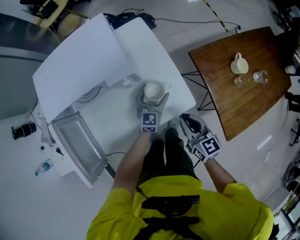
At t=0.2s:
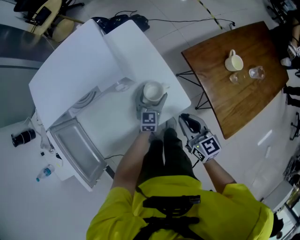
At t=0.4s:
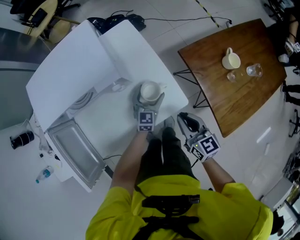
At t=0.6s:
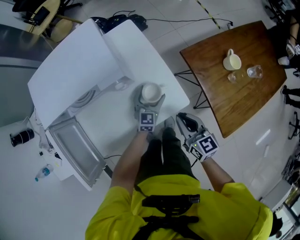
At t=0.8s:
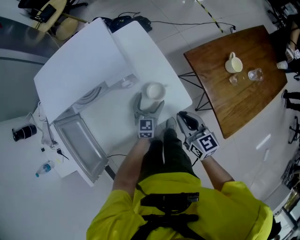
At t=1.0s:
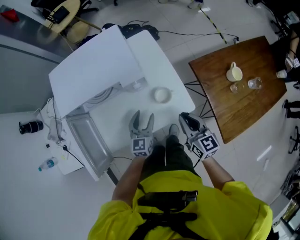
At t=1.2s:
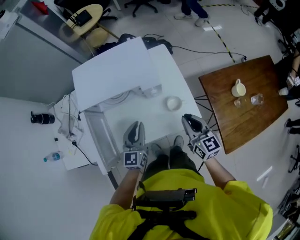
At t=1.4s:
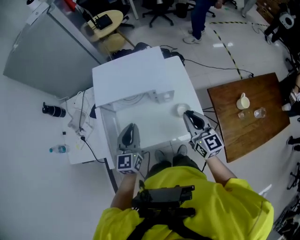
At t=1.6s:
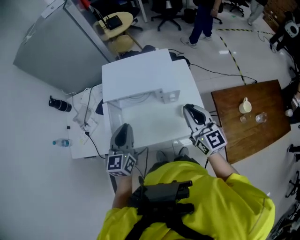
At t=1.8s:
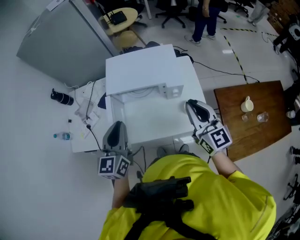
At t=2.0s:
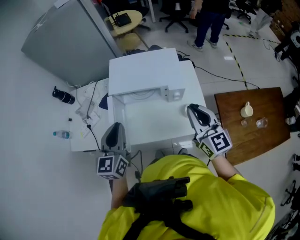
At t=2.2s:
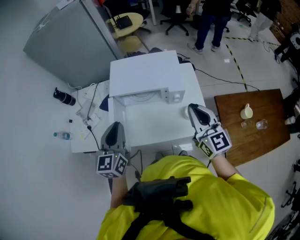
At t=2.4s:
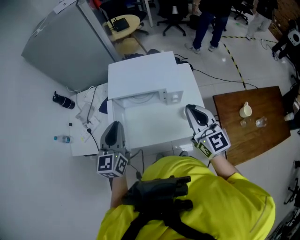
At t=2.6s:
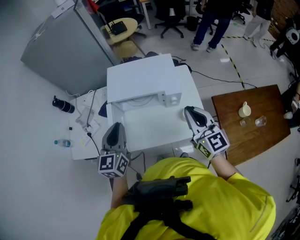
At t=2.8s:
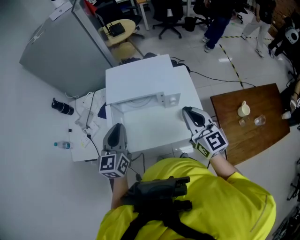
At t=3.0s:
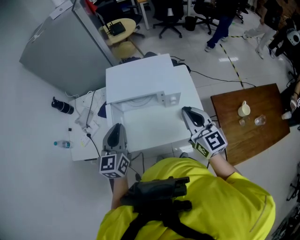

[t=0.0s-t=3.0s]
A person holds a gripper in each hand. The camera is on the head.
t=0.0s to t=1.6s: The left gripper moves upward, to the left and backward, about 50 cm, changes its angle by some 30 degrees, and closes up; the right gripper heads upward and to the left, covering approximately 30 cm, and rotates roughly 30 degrees.
t=1.6s to t=3.0s: The left gripper changes place by about 5 cm.

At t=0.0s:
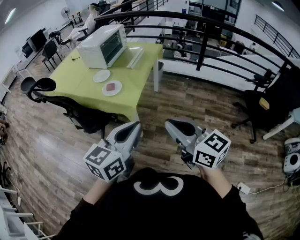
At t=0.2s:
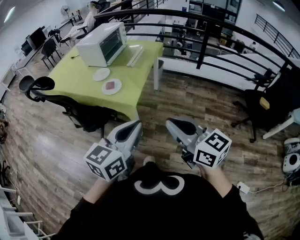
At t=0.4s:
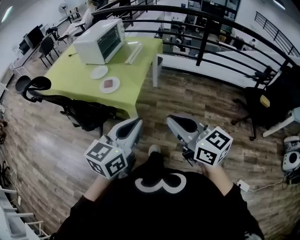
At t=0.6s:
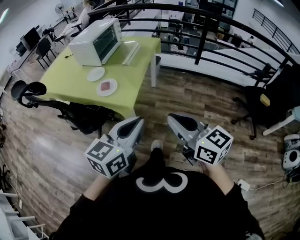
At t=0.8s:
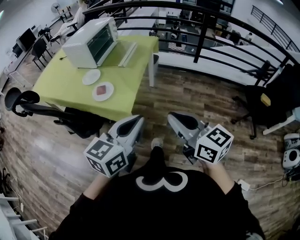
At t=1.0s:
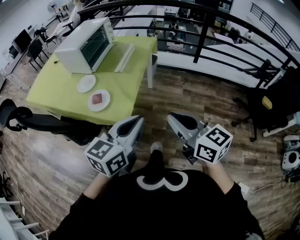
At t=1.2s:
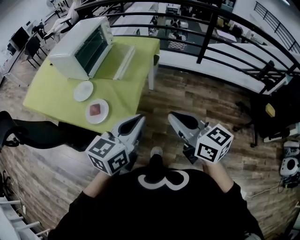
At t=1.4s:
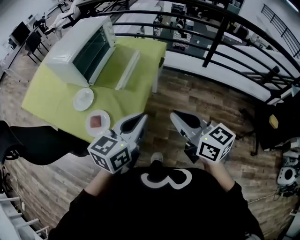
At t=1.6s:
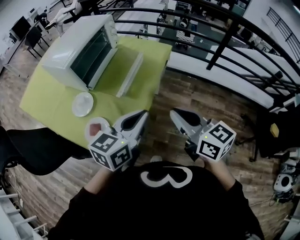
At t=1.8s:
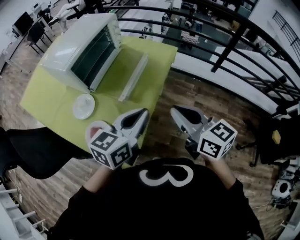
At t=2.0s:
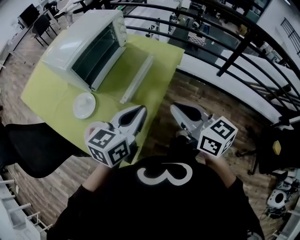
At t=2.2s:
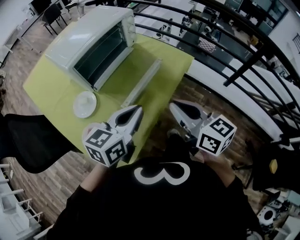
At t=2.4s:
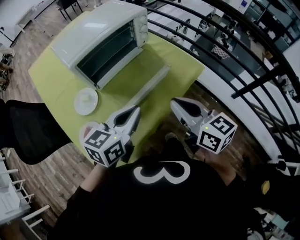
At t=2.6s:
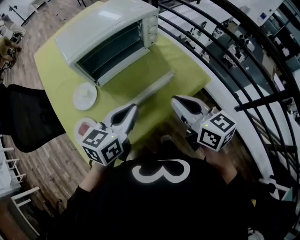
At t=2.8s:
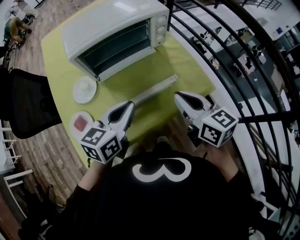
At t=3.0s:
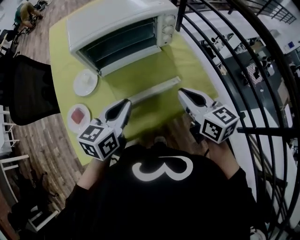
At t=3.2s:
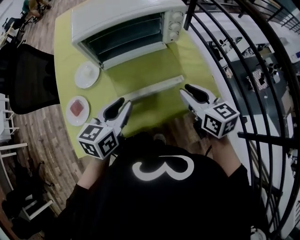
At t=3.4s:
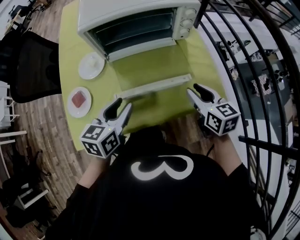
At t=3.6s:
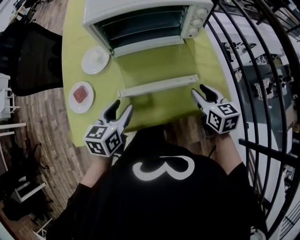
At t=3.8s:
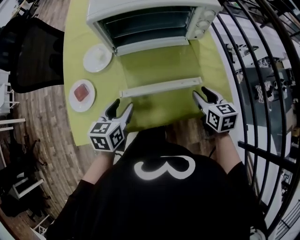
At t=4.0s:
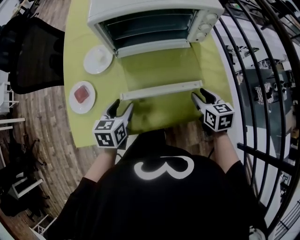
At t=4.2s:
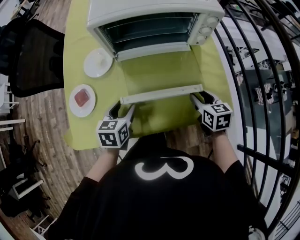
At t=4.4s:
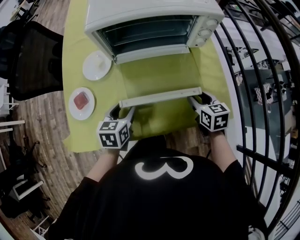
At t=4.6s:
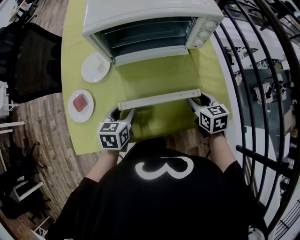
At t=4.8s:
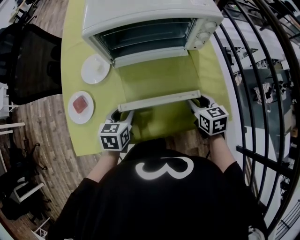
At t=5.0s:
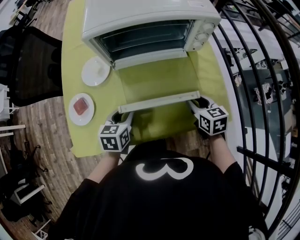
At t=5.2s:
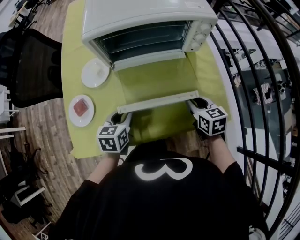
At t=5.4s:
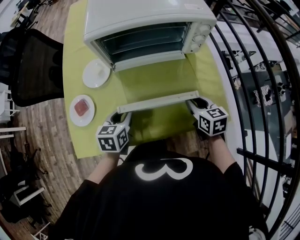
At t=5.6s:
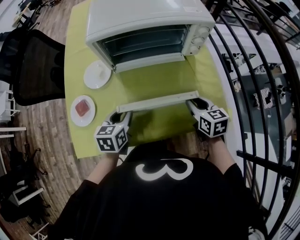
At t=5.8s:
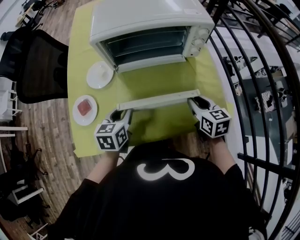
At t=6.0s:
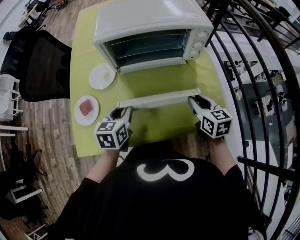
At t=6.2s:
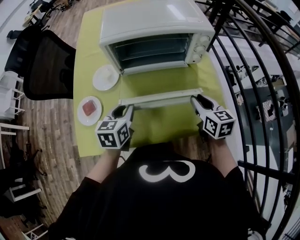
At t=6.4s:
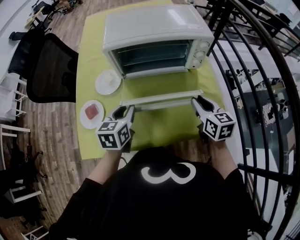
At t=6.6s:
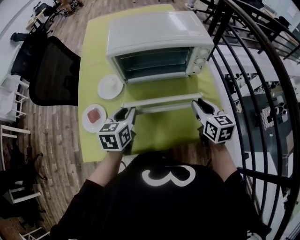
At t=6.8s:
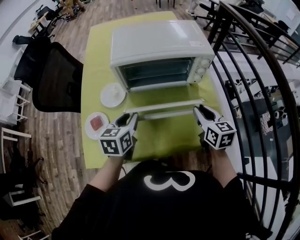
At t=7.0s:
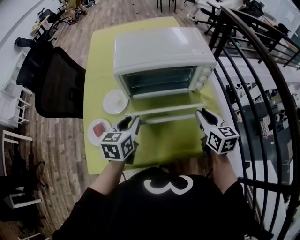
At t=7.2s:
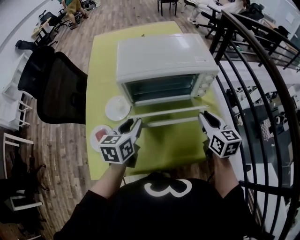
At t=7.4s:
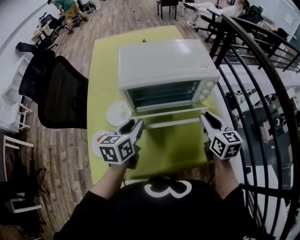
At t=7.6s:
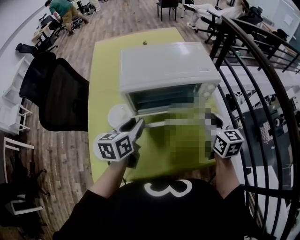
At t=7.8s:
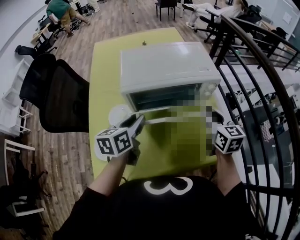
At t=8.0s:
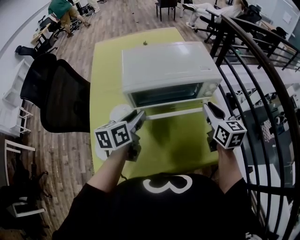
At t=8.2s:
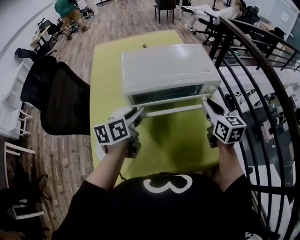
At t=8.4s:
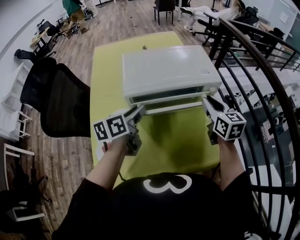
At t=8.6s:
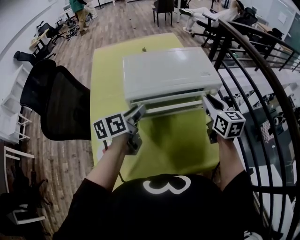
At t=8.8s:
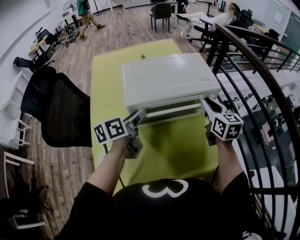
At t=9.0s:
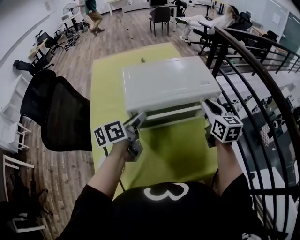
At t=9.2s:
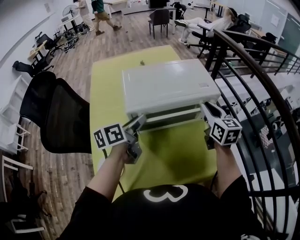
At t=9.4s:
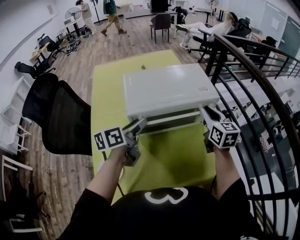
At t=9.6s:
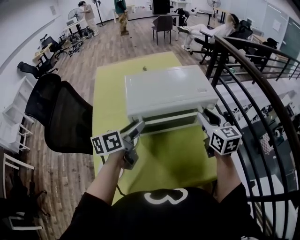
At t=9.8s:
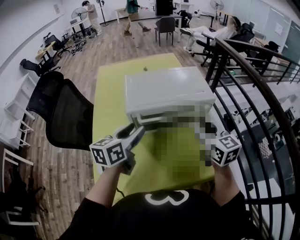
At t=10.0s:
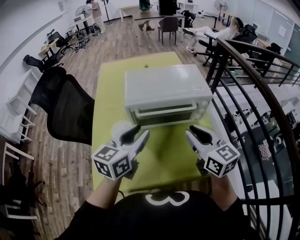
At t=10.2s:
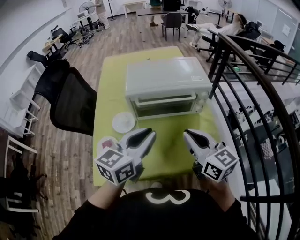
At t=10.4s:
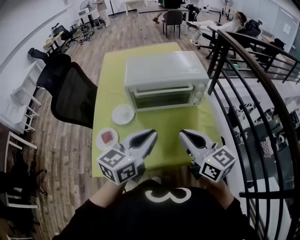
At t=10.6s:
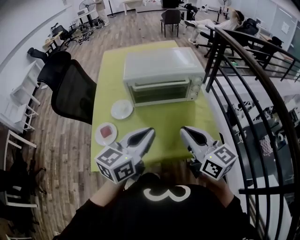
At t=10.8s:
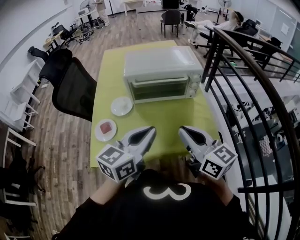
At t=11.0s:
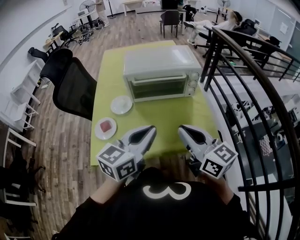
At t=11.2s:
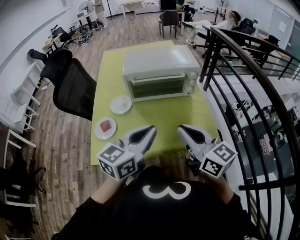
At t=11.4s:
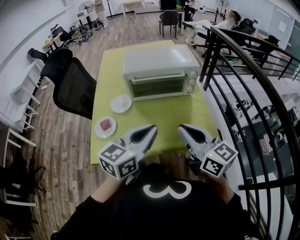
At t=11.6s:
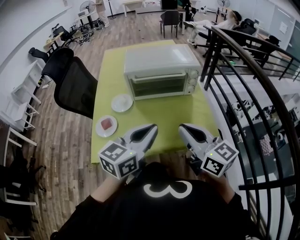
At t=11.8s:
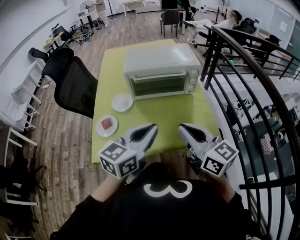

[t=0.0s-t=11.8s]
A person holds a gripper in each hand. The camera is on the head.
t=0.0s to t=1.4s: Both grippers are carried forward, roughly 40 cm.
t=1.4s to t=3.0s: The left gripper changes place by roughly 35 cm, and swivels some 50 degrees. Meanwhile the right gripper moves some 50 cm, and changes its angle by some 40 degrees.
t=3.0s to t=4.4s: The right gripper shifts about 20 cm downward and forward, rotates approximately 30 degrees, and opens up; the left gripper heads downward and to the left, covering roughly 20 cm, turns by roughly 30 degrees, and opens.
t=4.4s to t=6.0s: Both grippers move upward, approximately 5 cm. The right gripper closes up. The left gripper closes up.
t=6.0s to t=7.4s: The grippers both shift upward and forward by roughly 15 cm.
t=7.4s to t=8.8s: Both grippers travel together forward, about 10 cm. The left gripper swivels about 30 degrees.
t=8.8s to t=10.4s: The right gripper heads backward, covering approximately 25 cm, and rotates roughly 30 degrees. Meanwhile the left gripper heads backward and to the right, covering approximately 25 cm, rotates about 30 degrees, and closes up.
t=10.4s to t=11.8s: The two grippers go about 10 cm backward.

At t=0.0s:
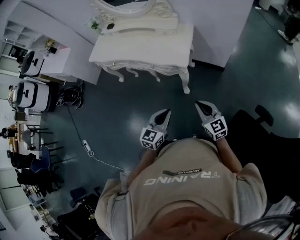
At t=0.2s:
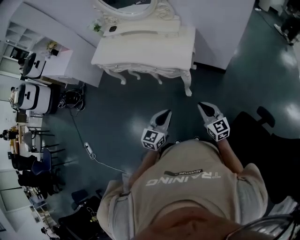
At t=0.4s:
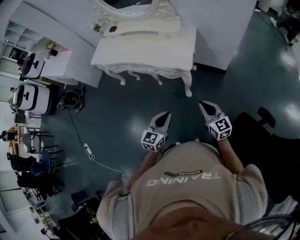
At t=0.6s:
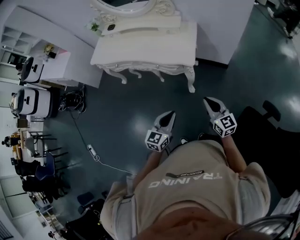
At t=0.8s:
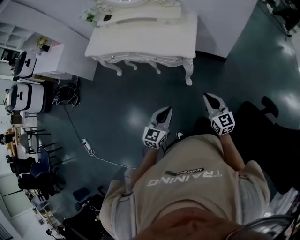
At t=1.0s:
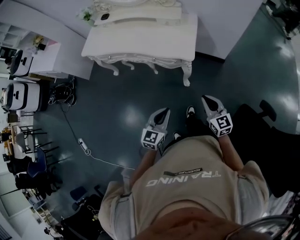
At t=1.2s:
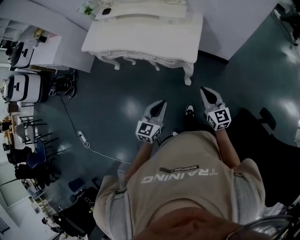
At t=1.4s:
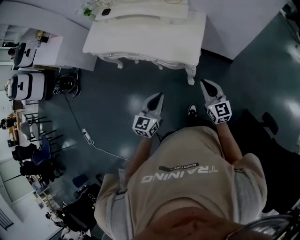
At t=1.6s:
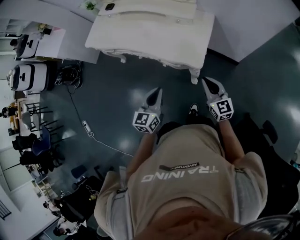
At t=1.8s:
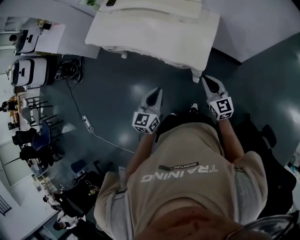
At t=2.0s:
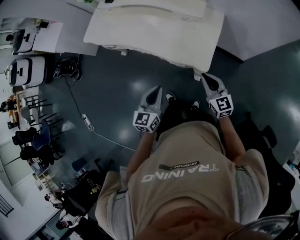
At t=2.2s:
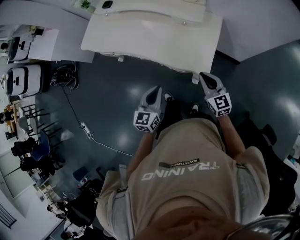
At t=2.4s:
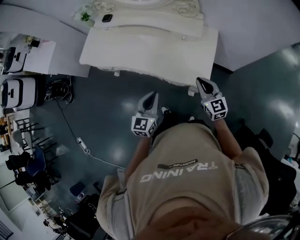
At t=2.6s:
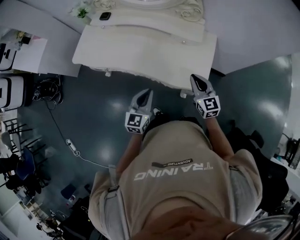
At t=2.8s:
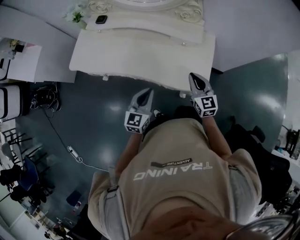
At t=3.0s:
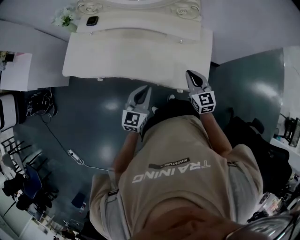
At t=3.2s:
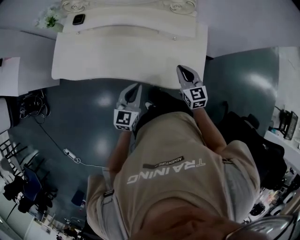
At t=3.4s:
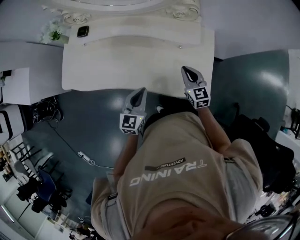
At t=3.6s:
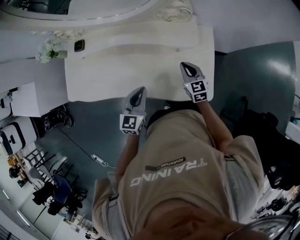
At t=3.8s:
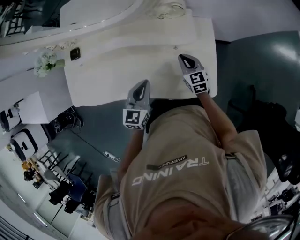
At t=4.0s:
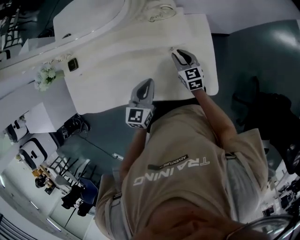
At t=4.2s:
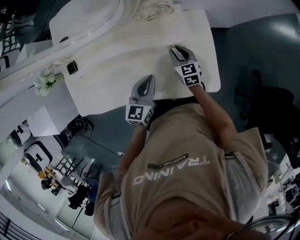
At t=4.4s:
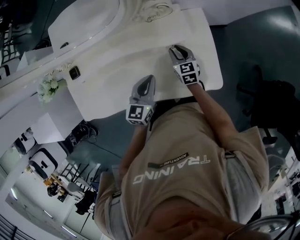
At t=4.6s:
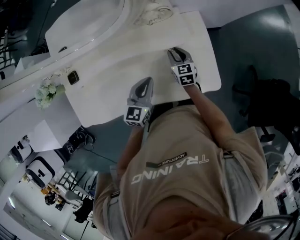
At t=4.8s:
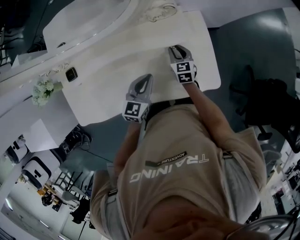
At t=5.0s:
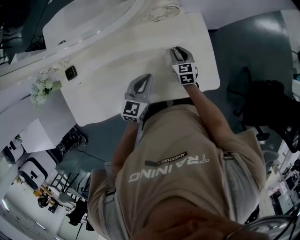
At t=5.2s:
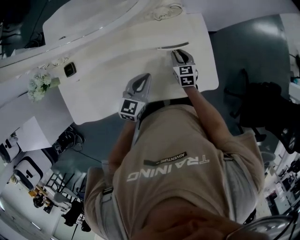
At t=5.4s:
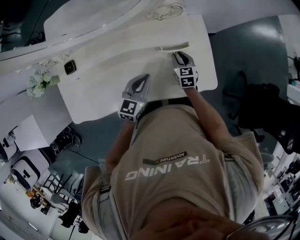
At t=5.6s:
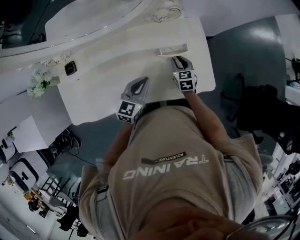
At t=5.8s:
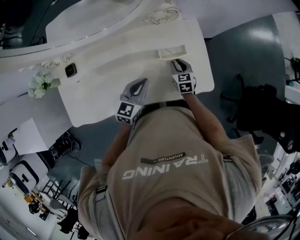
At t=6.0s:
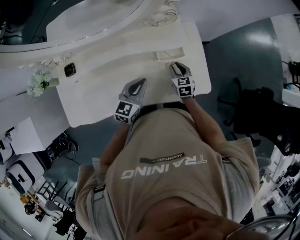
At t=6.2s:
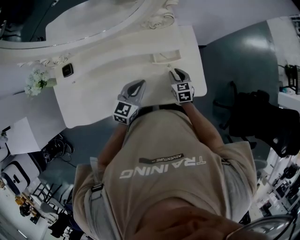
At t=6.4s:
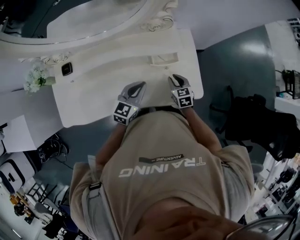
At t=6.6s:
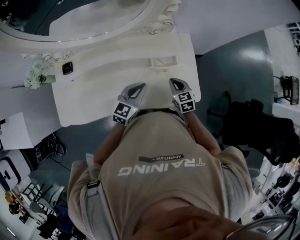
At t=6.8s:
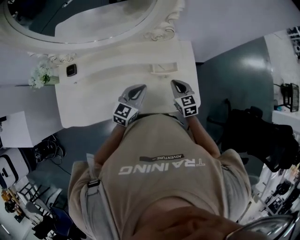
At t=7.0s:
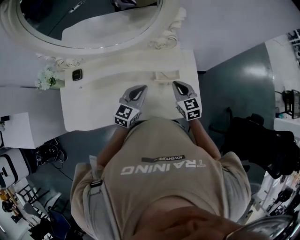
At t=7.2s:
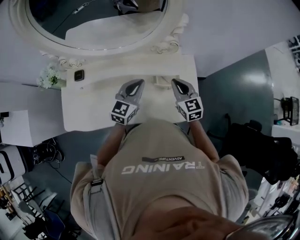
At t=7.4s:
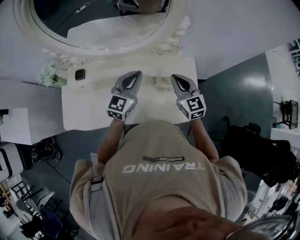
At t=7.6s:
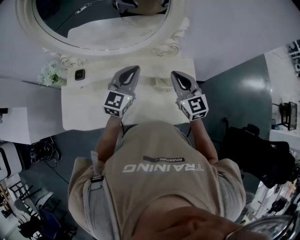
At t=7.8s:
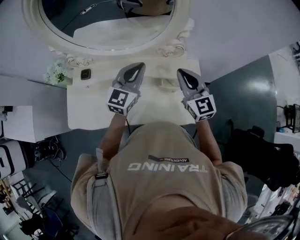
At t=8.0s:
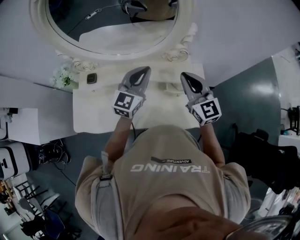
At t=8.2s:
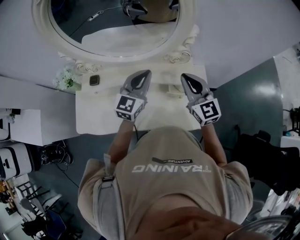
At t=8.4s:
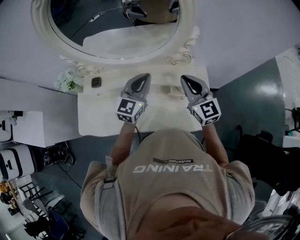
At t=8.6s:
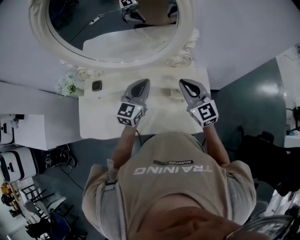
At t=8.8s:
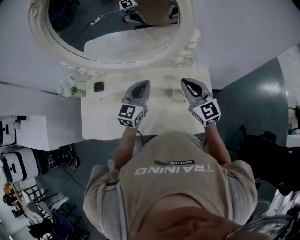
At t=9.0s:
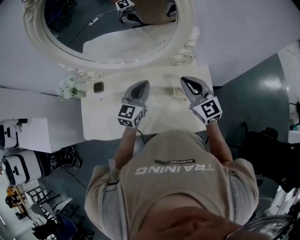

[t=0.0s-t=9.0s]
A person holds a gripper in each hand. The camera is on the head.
t=0.0s to t=1.6s: The two grippers go approximately 25 cm forward.
t=1.6s to t=3.0s: Both grippers move forward and to the left, approximately 30 cm.
t=3.0s to t=4.4s: The right gripper goes approximately 30 cm forward and downward, turns by roughly 30 degrees, and opens its fingers. Meanwhile the left gripper moves forward, roughly 25 cm, and swivels roughly 20 degrees.
t=4.4s to t=6.0s: The left gripper shifts by some 5 cm. The right gripper shifts roughly 5 cm backward.
t=6.0s to t=7.6s: The left gripper heads upward and forward, covering approximately 20 cm, and swivels approximately 20 degrees, while the right gripper is displaced upward by some 30 cm, points its fingers about 30 degrees further upward, and closes.
t=7.6s to t=9.0s: The grippers stay close to where they were, moving slightly.
